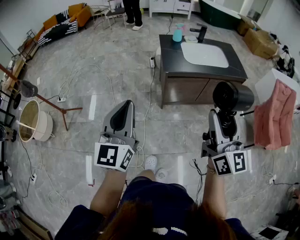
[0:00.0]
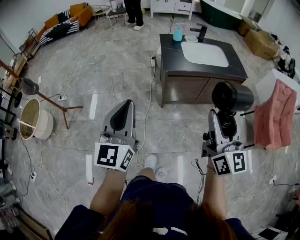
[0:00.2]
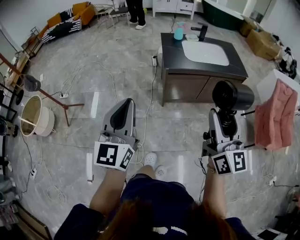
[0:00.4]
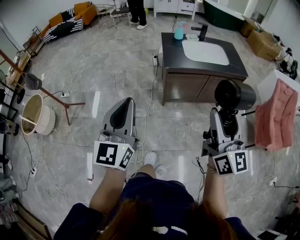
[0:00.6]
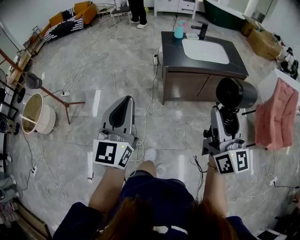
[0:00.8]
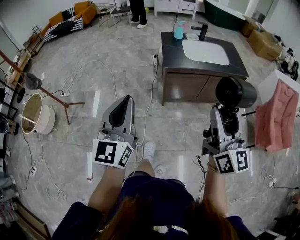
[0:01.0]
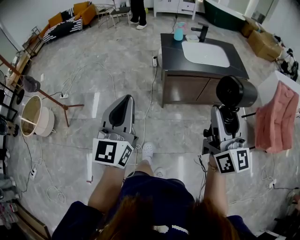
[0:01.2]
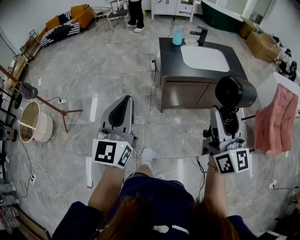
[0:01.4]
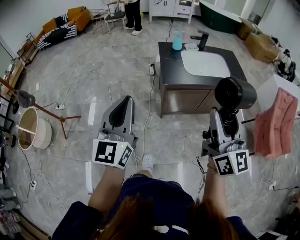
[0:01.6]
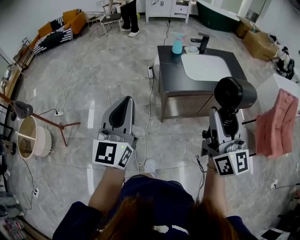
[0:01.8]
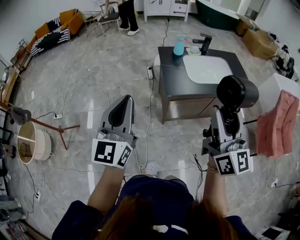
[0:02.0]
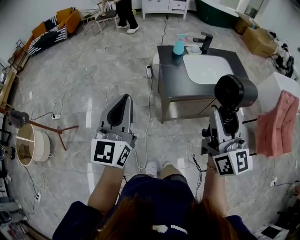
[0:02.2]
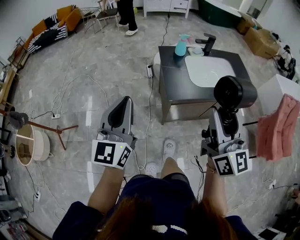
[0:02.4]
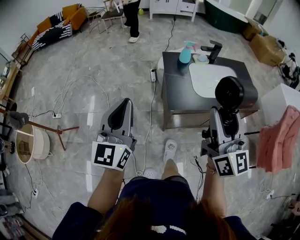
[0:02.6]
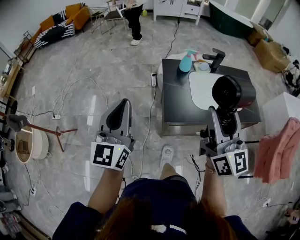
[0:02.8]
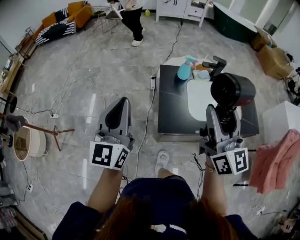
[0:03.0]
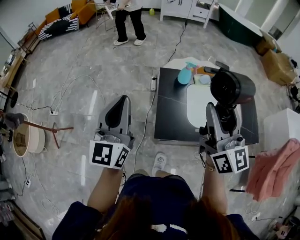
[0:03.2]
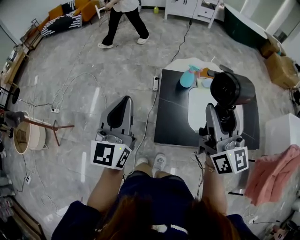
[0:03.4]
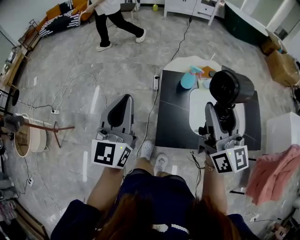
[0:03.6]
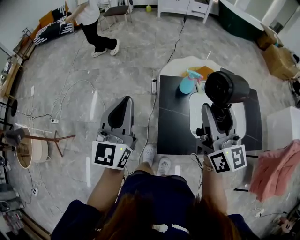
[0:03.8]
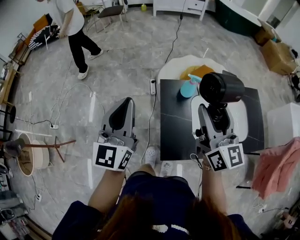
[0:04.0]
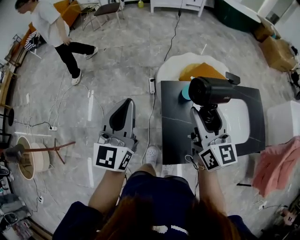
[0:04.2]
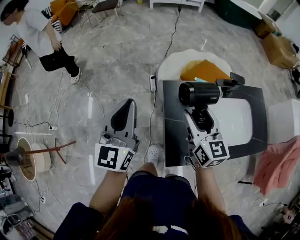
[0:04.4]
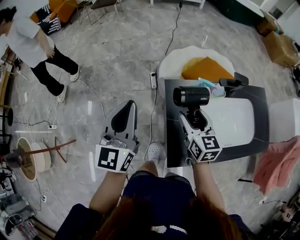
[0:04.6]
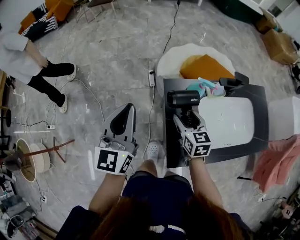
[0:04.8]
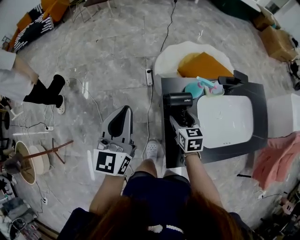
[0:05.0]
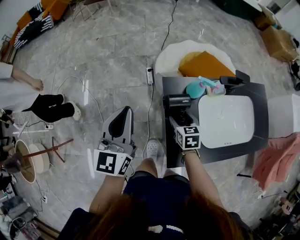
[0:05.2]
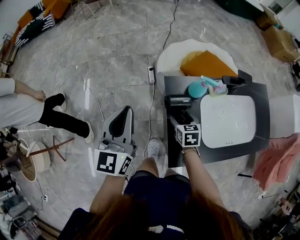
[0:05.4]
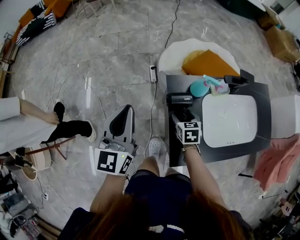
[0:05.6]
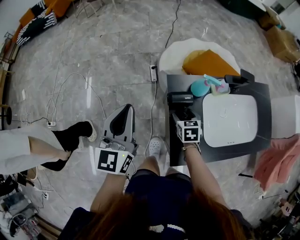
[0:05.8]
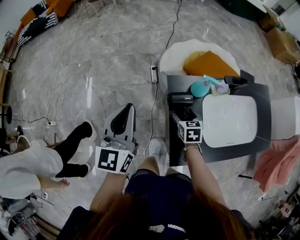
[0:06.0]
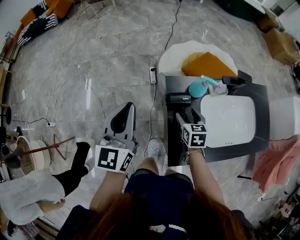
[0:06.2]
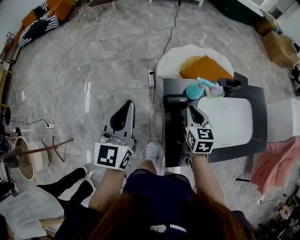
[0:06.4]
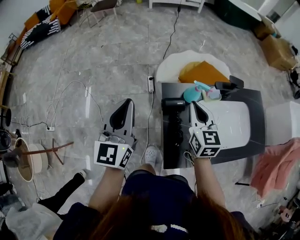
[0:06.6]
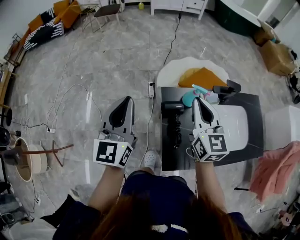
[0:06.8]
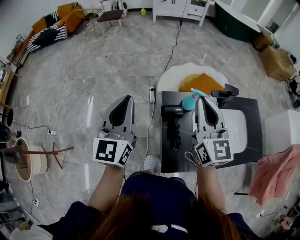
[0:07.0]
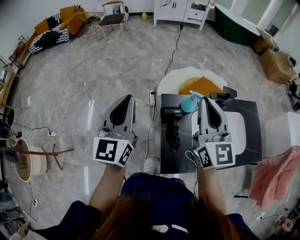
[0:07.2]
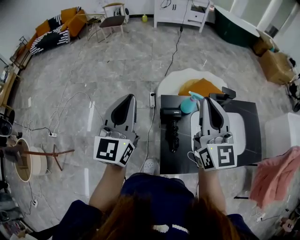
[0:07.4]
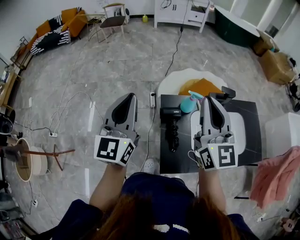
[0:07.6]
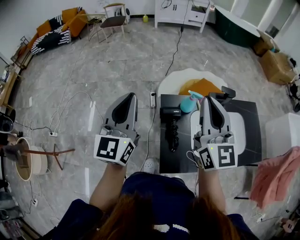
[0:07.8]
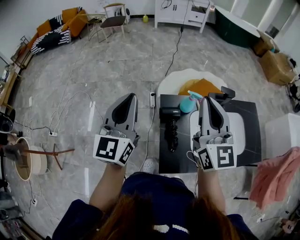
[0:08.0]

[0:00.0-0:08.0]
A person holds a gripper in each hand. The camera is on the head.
0:00.0 to 0:01.6: Both grippers move forward, roughly 10 cm.
0:01.6 to 0:03.2: The two grippers travel together, forward, some 50 cm.
0:03.2 to 0:04.8: The right gripper goes about 40 cm downward and forward, and tips its fingers downward by approximately 50 degrees; the left gripper travels forward by roughly 30 cm.
0:04.8 to 0:06.4: The right gripper goes downward and returns, some 10 cm each way, and closes its fingers.
0:06.4 to 0:08.0: The left gripper heads upward, covering roughly 10 cm; the right gripper travels upward by about 30 cm, and points its fingers some 40 degrees further upward.

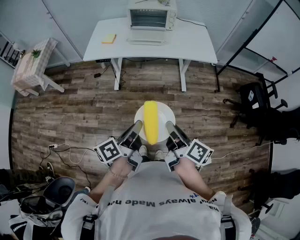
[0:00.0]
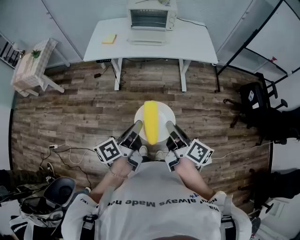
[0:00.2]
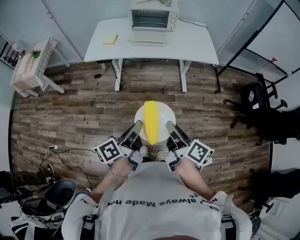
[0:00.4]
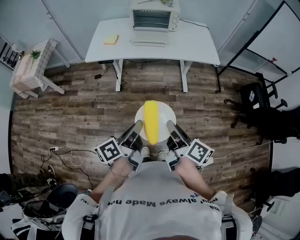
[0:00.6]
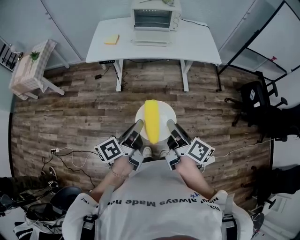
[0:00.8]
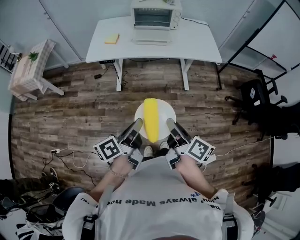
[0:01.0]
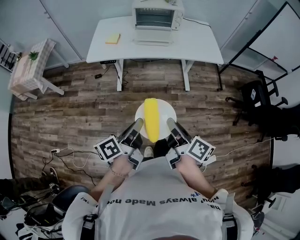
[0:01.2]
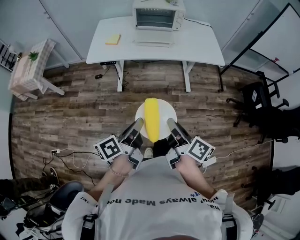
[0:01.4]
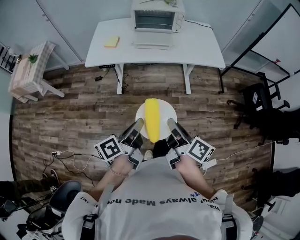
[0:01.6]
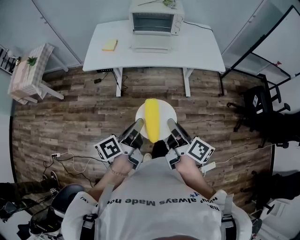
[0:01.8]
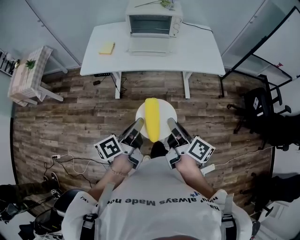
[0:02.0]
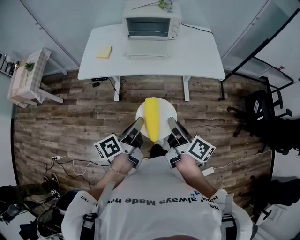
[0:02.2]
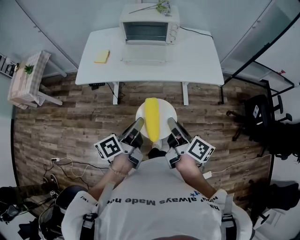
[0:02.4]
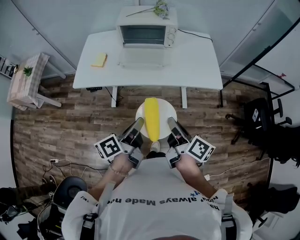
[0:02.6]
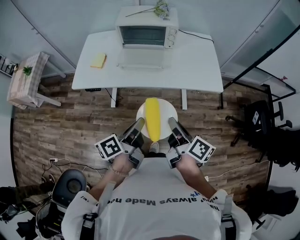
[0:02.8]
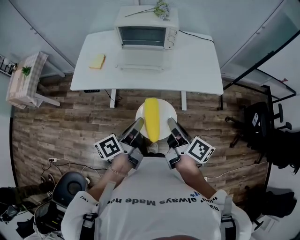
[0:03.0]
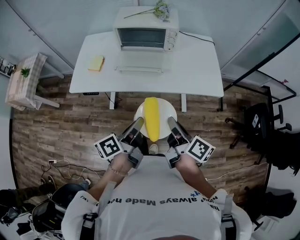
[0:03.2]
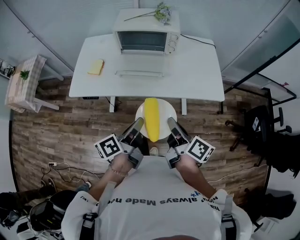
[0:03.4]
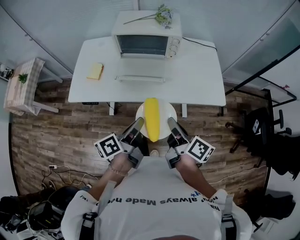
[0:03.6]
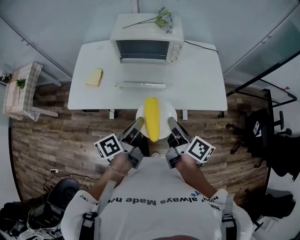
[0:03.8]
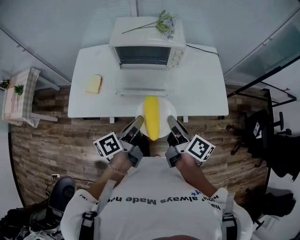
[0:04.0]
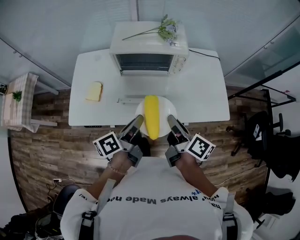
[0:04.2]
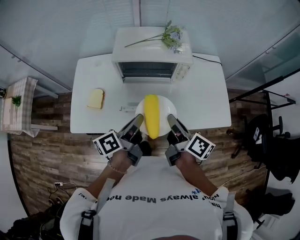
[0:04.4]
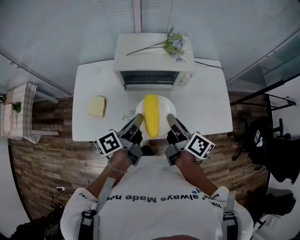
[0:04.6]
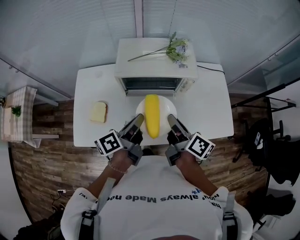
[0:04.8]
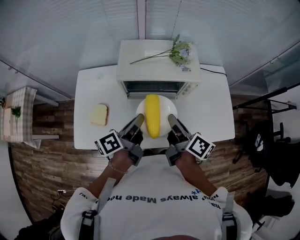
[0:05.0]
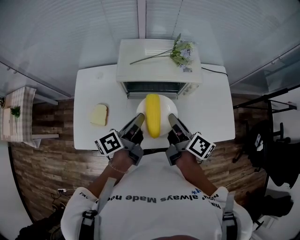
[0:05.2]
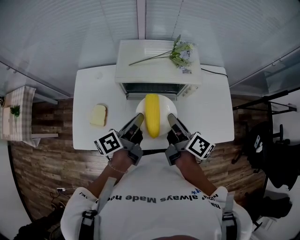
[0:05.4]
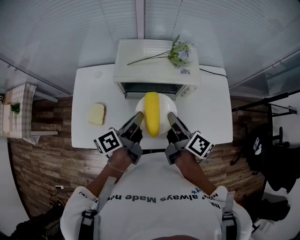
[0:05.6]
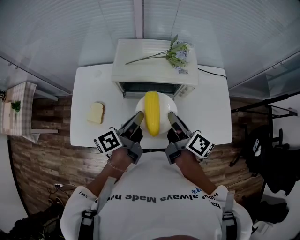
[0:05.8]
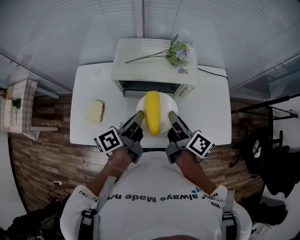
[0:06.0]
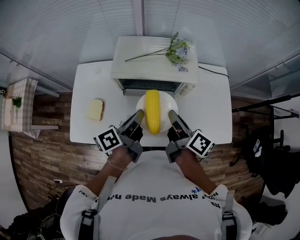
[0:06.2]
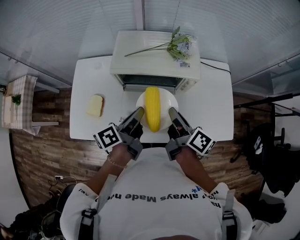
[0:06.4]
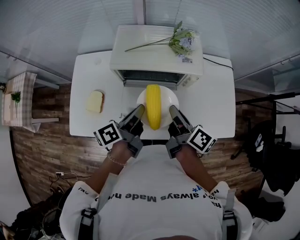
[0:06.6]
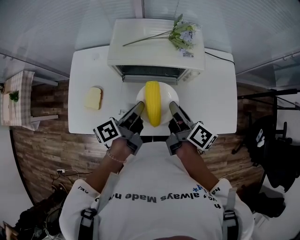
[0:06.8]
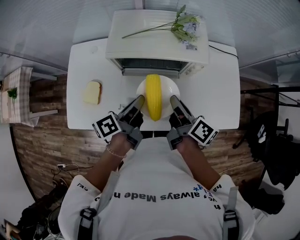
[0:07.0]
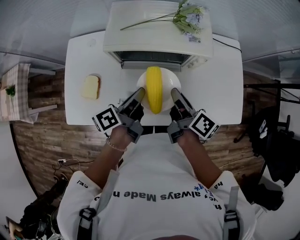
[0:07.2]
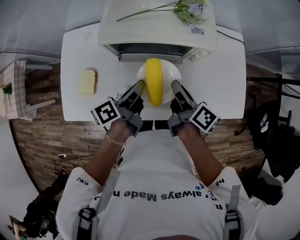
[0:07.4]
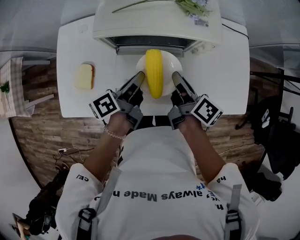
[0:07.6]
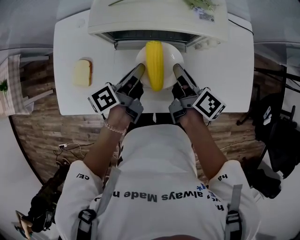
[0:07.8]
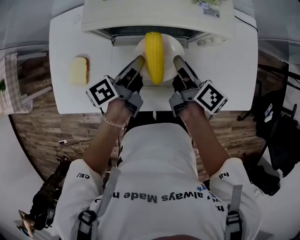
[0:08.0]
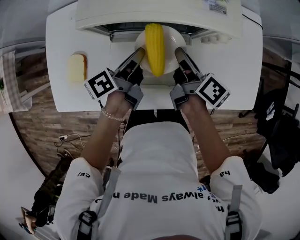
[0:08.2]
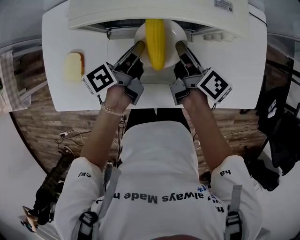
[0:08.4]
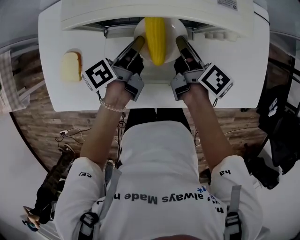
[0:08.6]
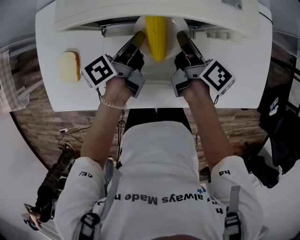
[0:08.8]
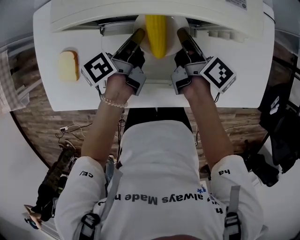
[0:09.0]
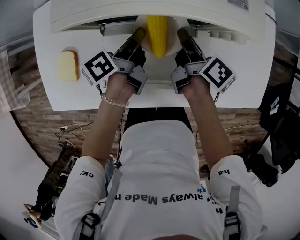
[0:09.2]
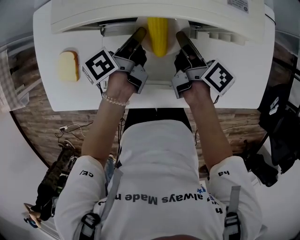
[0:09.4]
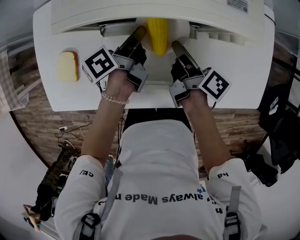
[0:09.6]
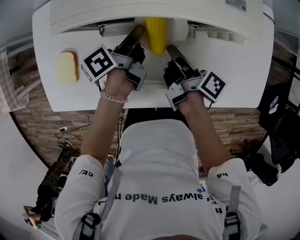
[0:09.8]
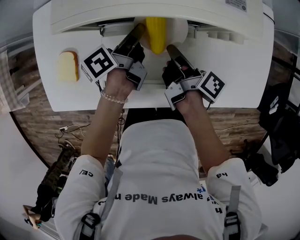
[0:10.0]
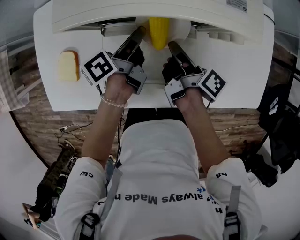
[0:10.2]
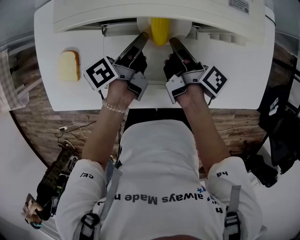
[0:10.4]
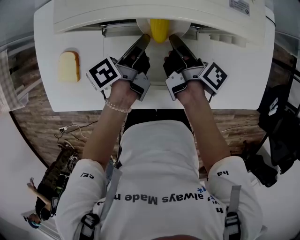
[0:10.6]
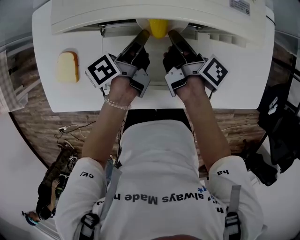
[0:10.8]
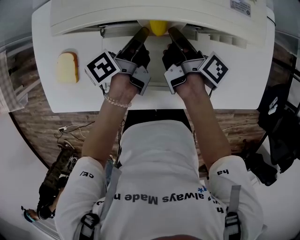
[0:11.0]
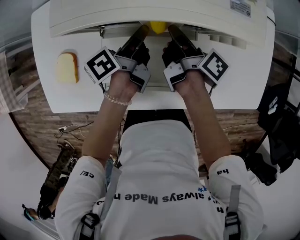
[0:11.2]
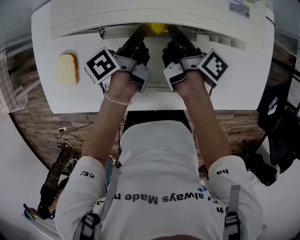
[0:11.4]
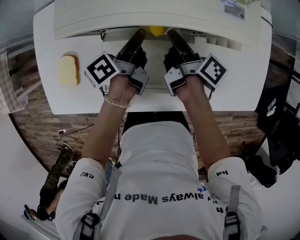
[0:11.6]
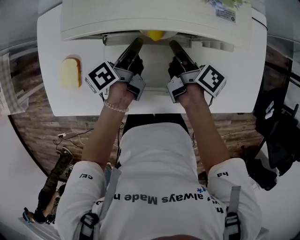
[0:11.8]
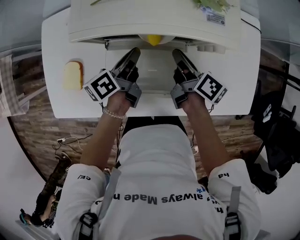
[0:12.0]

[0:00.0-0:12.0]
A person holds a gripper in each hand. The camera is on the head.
0:00.0 to 0:01.6: Both grippers travel together forward and to the left, some 10 cm.
0:01.6 to 0:03.0: The grippers both shift forward and to the right by about 30 cm.
0:03.0 to 0:04.4: Both grippers travel together forward, some 30 cm.
0:04.4 to 0:06.0: The two grippers go about 15 cm forward.
0:06.0 to 0:07.6: Both grippers travel together downward, about 15 cm.
0:07.6 to 0:09.0: Both grippers move downward and forward, approximately 15 cm.
0:10.4 to 0:12.0: The right gripper shifts by about 5 cm, and rotates about 30 degrees.

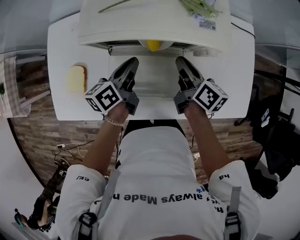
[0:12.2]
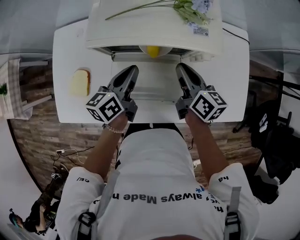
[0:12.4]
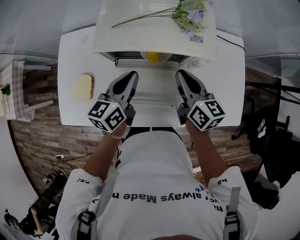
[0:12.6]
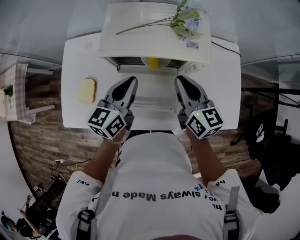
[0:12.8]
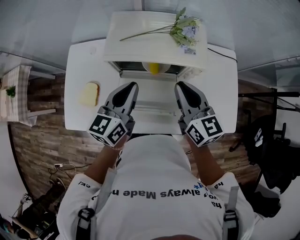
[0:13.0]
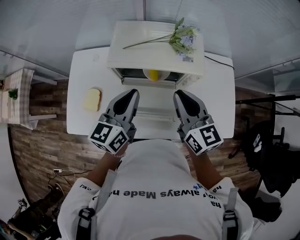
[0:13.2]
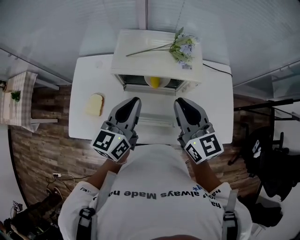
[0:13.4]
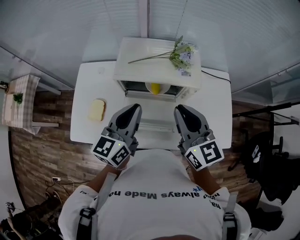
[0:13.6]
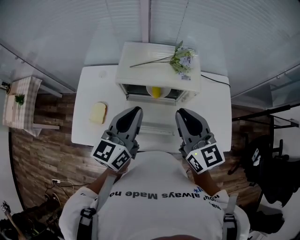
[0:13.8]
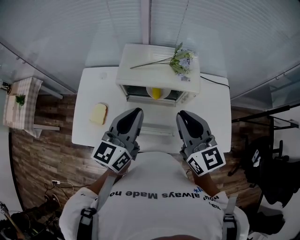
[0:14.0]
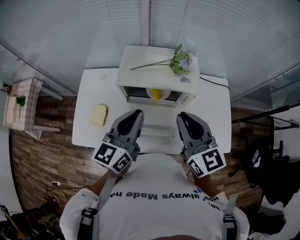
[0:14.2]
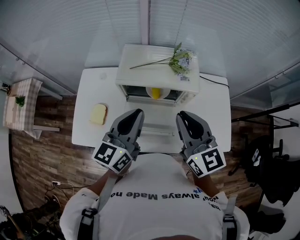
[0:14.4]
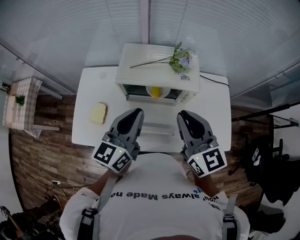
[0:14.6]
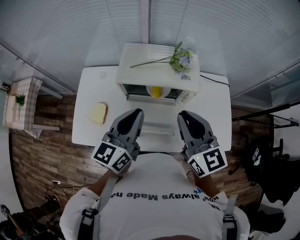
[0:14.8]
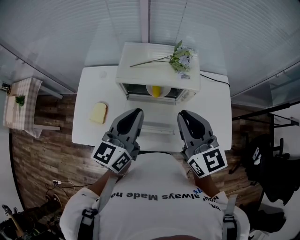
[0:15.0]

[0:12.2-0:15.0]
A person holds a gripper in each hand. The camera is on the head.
0:12.2 to 0:13.6: The grippers both shift upward by roughly 30 cm. The left gripper rotates roughly 40 degrees, while the right gripper twists roughly 50 degrees counterclockwise, seen from behind.
0:13.6 to 0:15.0: The grippers stay close to where they were, moving slightly.

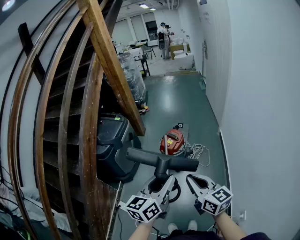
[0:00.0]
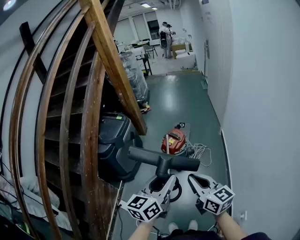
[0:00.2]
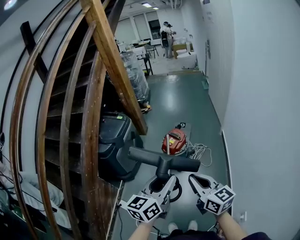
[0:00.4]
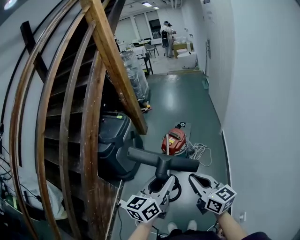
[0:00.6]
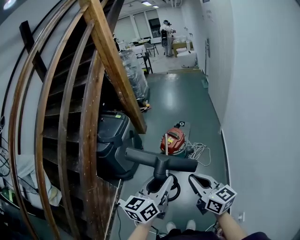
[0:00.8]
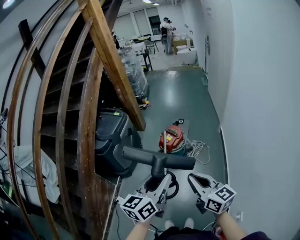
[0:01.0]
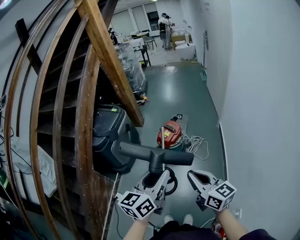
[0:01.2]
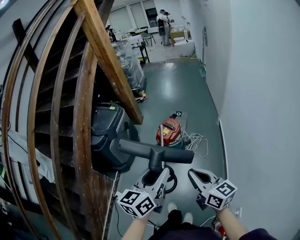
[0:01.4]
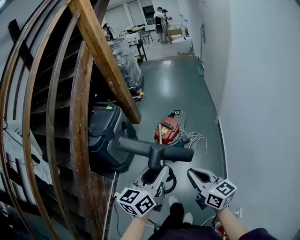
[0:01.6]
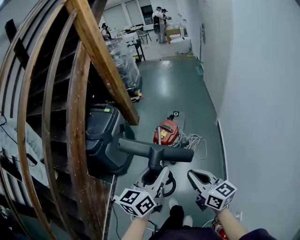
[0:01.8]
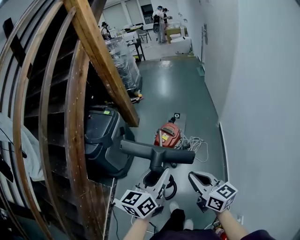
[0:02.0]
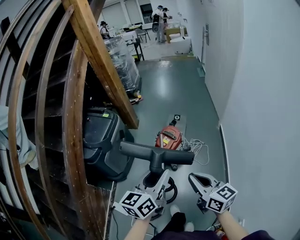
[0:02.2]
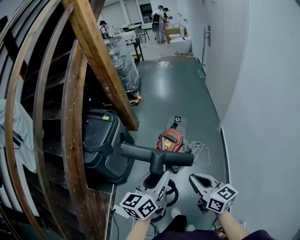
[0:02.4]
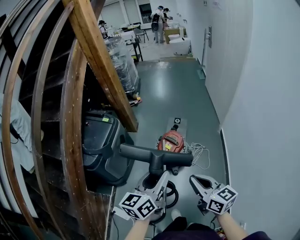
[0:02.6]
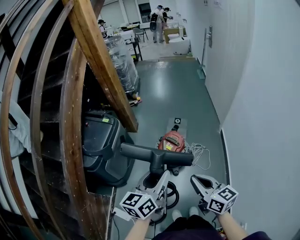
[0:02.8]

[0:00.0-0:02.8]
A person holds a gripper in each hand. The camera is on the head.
0:00.0 to 0:01.4: The right gripper heads to the right, covering approximately 5 cm.
0:01.4 to 0:02.8: The two grippers go some 20 cm forward.
